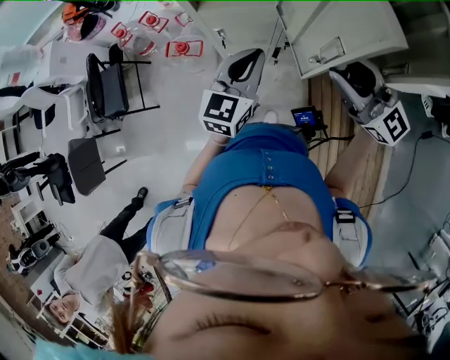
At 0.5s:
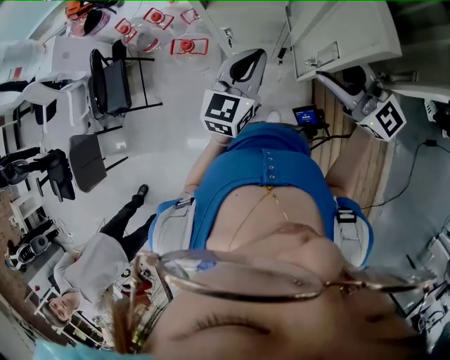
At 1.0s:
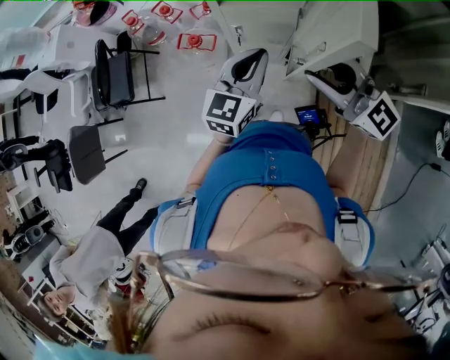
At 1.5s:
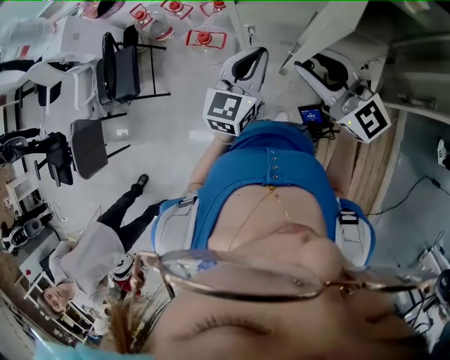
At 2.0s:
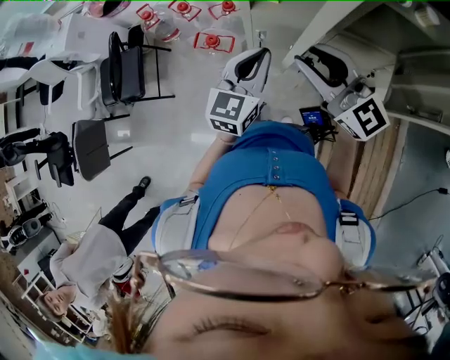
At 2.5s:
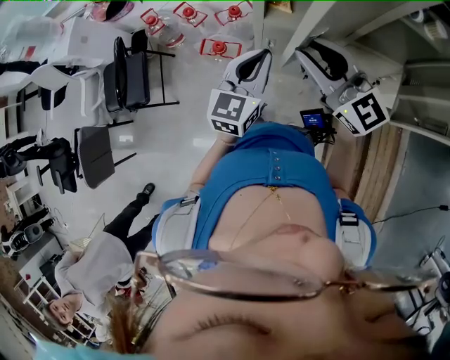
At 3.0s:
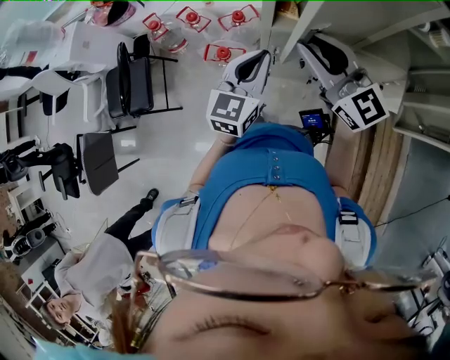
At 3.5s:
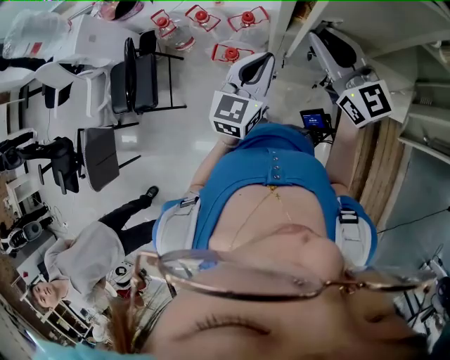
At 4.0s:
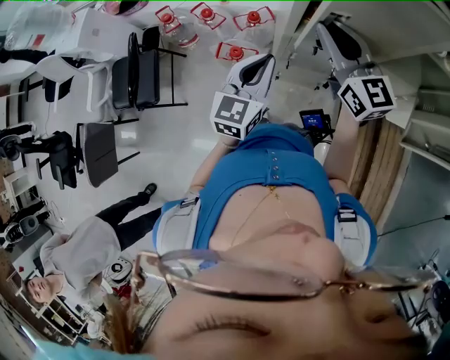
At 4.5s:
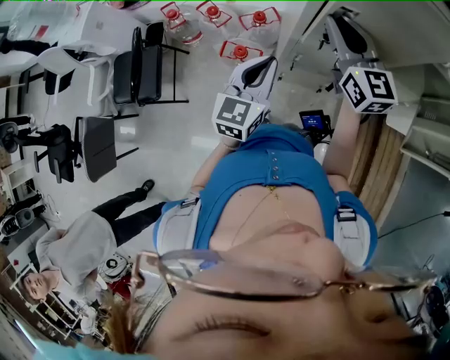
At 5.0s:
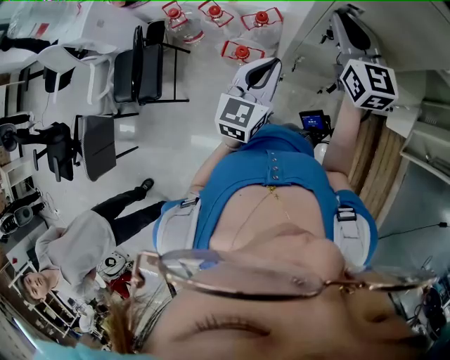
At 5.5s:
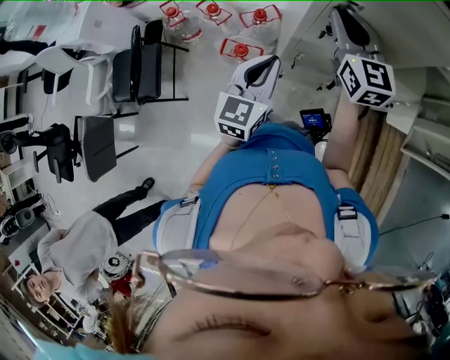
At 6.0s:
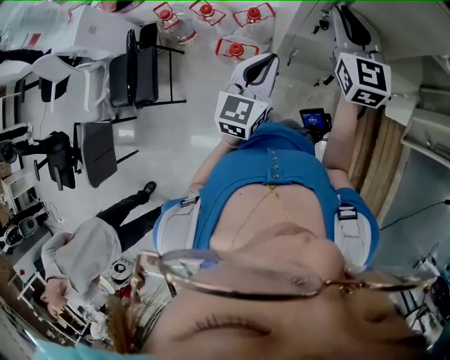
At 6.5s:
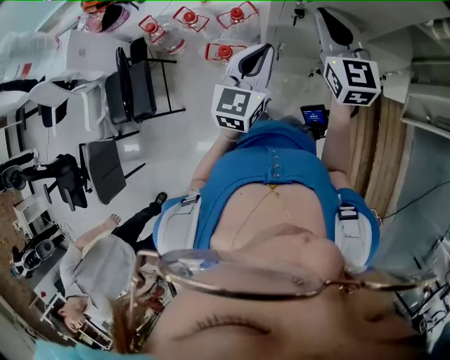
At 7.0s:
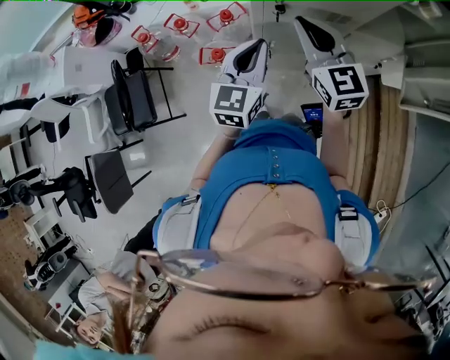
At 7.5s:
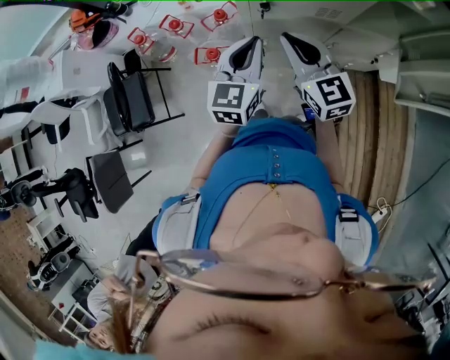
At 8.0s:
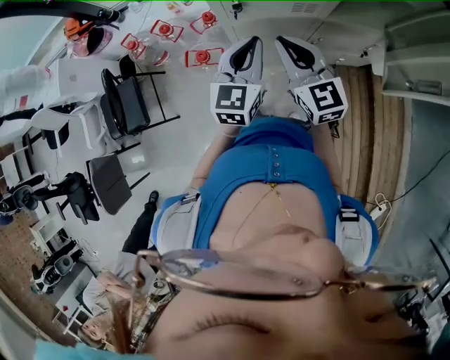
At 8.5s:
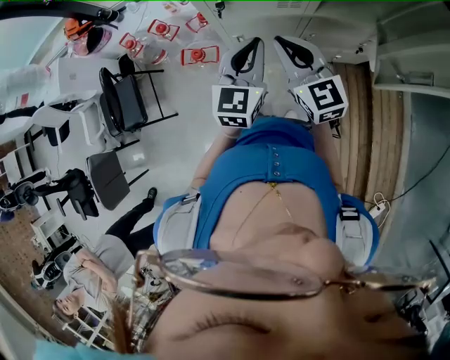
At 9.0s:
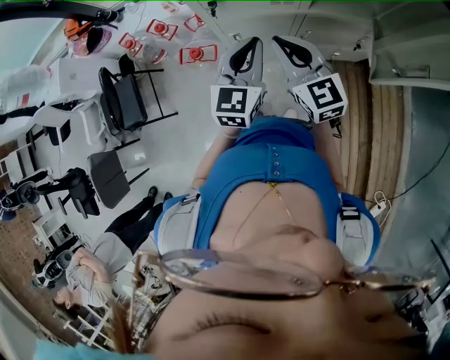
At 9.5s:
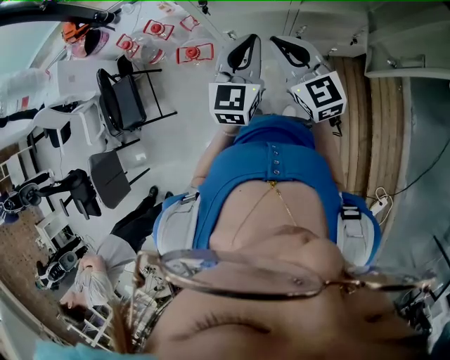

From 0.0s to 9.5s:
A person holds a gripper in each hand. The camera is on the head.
From 0.0s to 2.0s: The left gripper goes about 15 cm to the left and forward. The right gripper goes roughly 20 cm to the left and forward.
From 2.0s to 4.0s: The left gripper is displaced to the left and forward by some 15 cm, while the right gripper goes about 15 cm forward, and swivels about 20 degrees.
From 4.0s to 5.5s: The right gripper moves forward, about 5 cm.
From 5.5s to 7.5s: The right gripper is displaced backward and downward by some 15 cm, while the left gripper moves to the right, approximately 10 cm.
From 7.5s to 9.5s: The right gripper shifts some 15 cm to the right and backward. Meanwhile the left gripper travels to the right by roughly 15 cm.

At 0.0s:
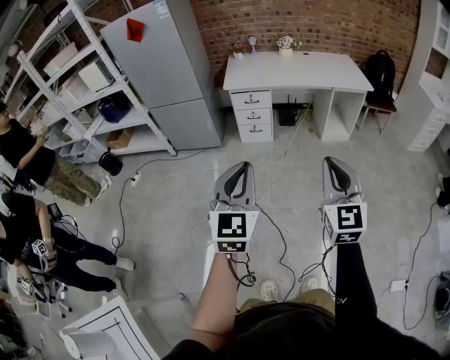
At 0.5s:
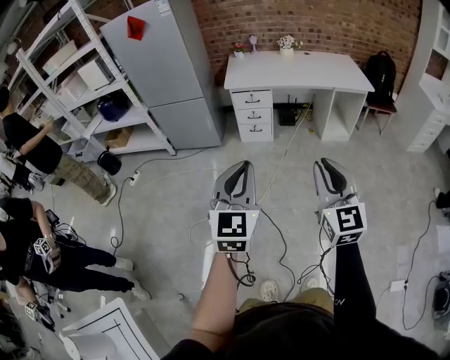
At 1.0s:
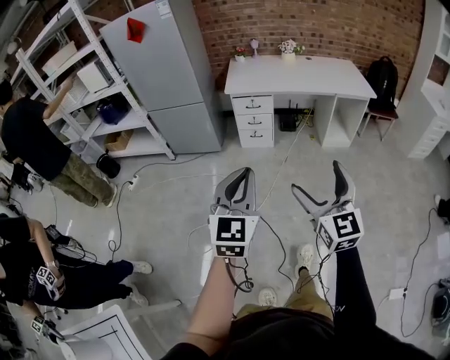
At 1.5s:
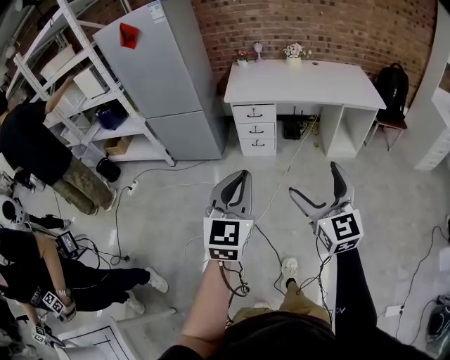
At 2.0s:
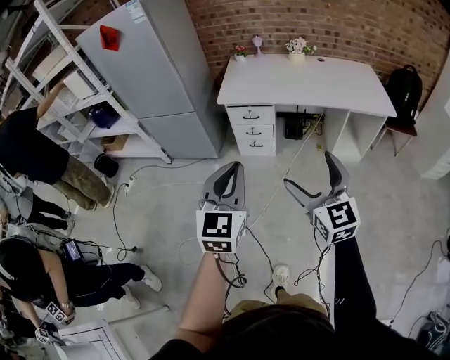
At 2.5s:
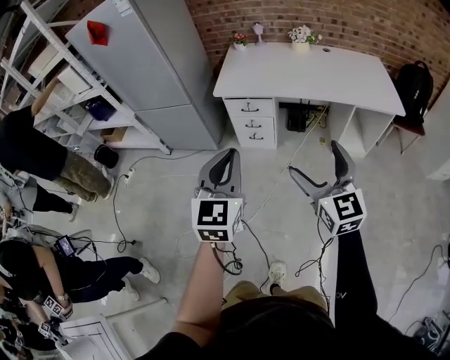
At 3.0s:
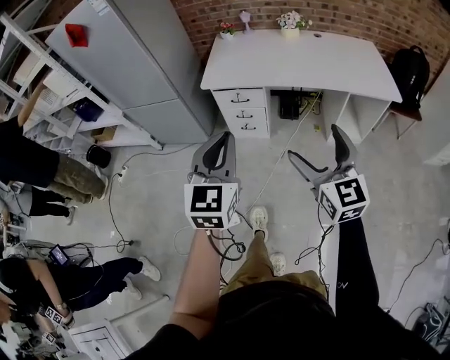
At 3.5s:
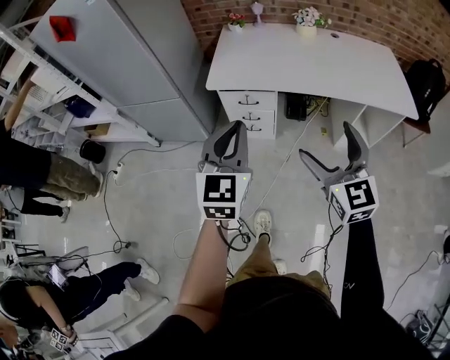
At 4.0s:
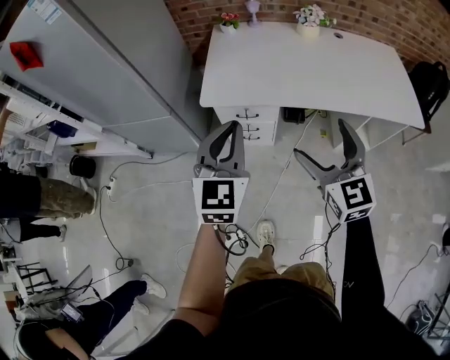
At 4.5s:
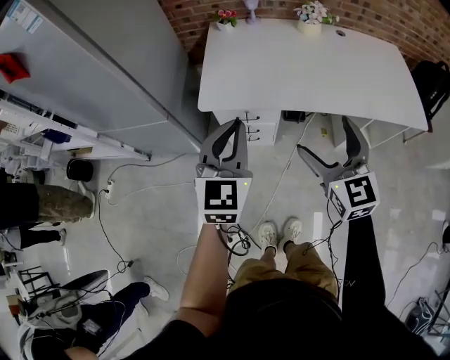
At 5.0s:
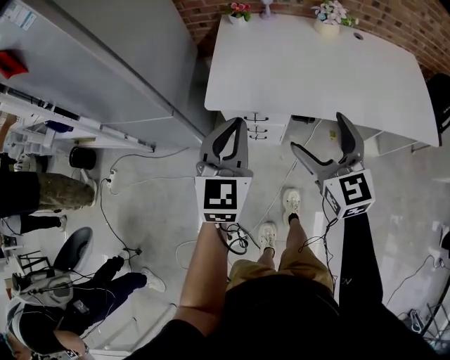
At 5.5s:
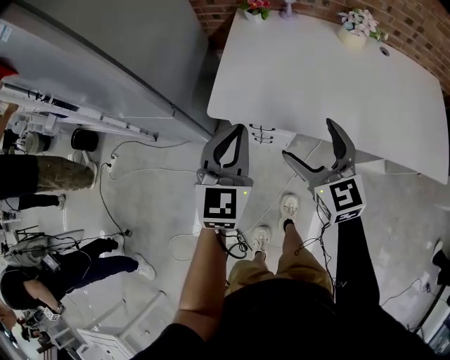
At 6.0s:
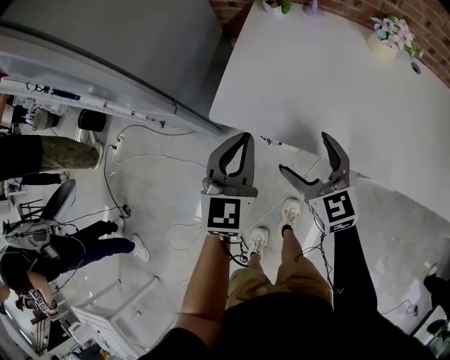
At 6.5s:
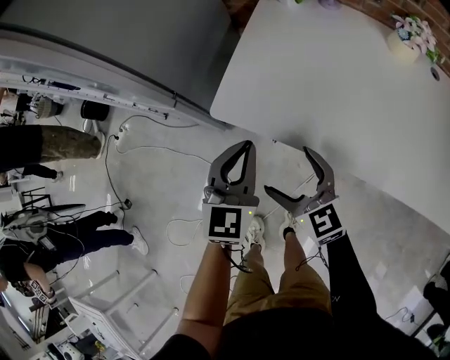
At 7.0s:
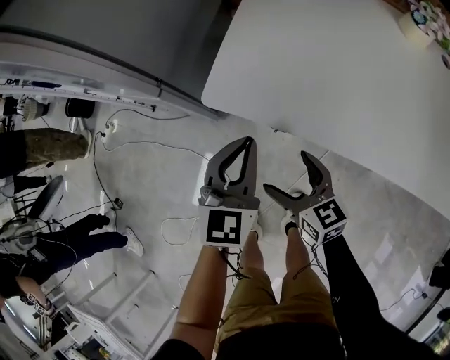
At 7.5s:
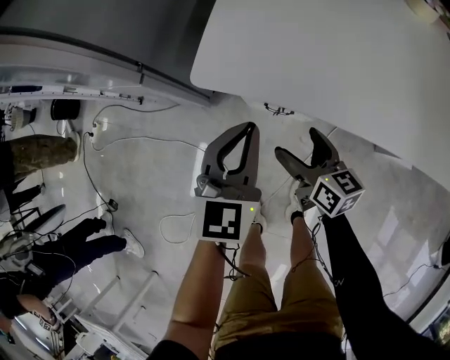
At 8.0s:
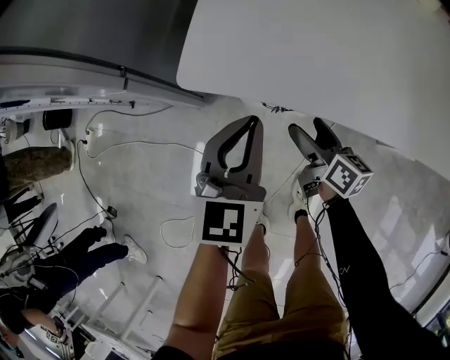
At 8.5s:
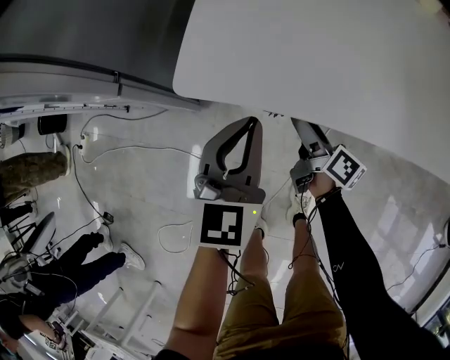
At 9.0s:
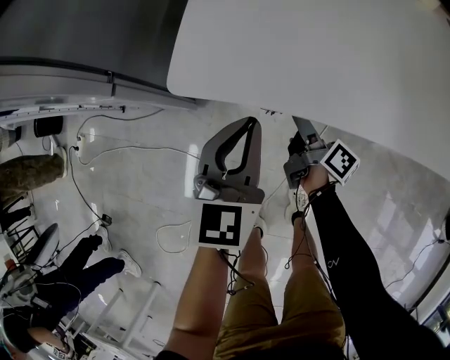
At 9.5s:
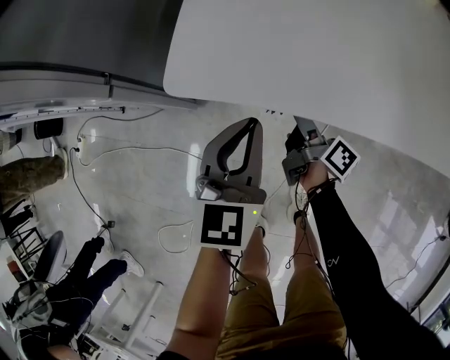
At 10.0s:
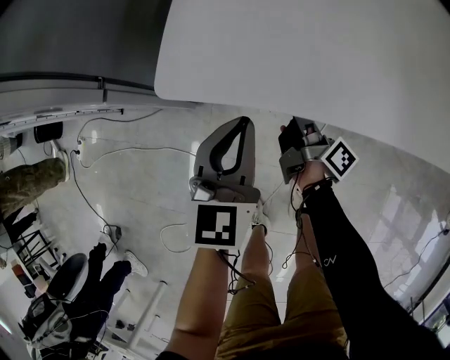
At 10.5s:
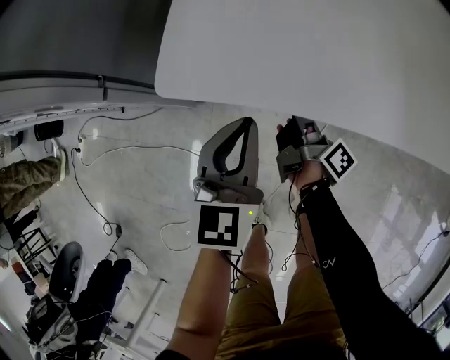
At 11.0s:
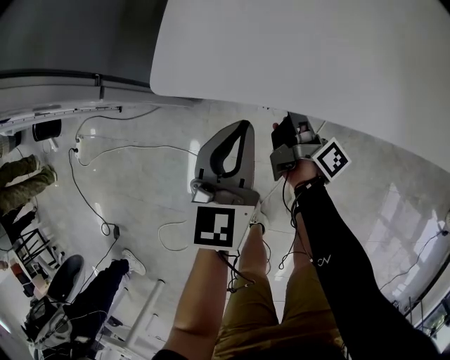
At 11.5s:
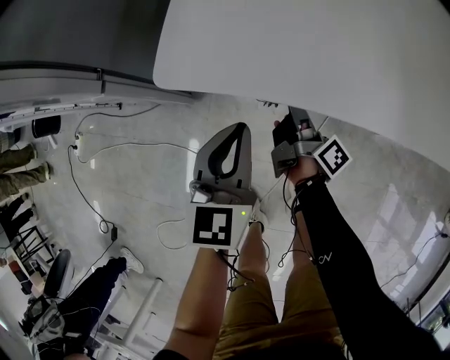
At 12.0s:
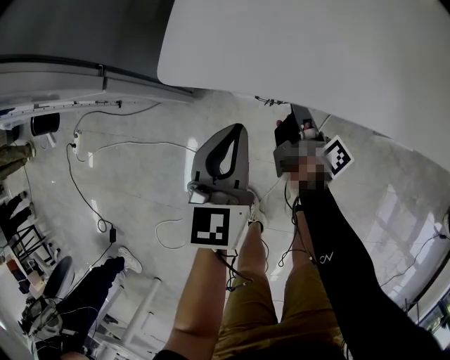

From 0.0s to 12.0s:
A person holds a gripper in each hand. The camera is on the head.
From 0.0s to 2.0s: The two grippers go roughly 30 cm forward. The right gripper changes its angle by approximately 20 degrees, and opens its fingers.
From 2.0s to 4.0s: The grippers both shift forward by approximately 40 cm.
From 4.0s to 6.0s: Both grippers move forward and downward, some 25 cm. The right gripper changes its angle by roughly 30 degrees.
From 6.0s to 8.0s: Both grippers move downward, about 25 cm. The right gripper rolls clockwise, seen from behind, by roughly 50 degrees.
From 8.0s to 10.0s: The right gripper changes its angle by some 40 degrees, and closes up.
From 10.0s to 12.0s: The grippers make only small movements.

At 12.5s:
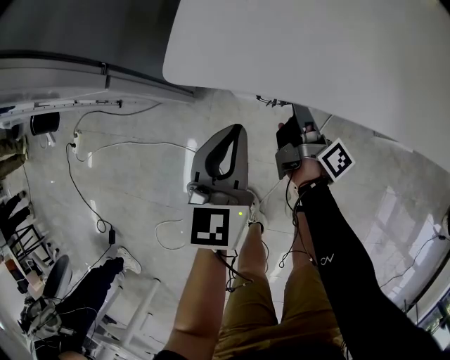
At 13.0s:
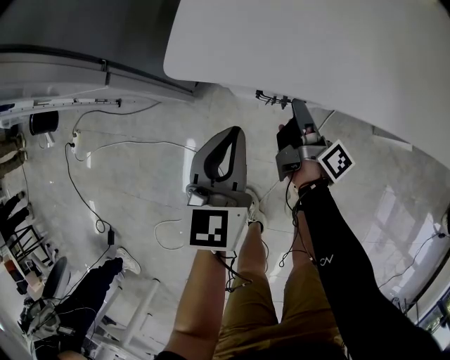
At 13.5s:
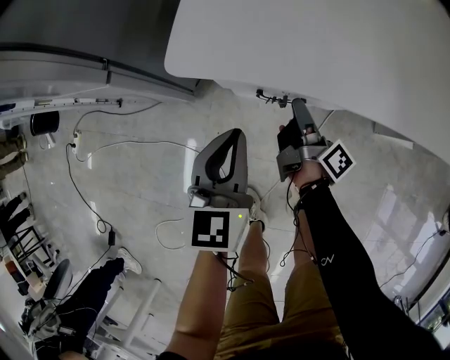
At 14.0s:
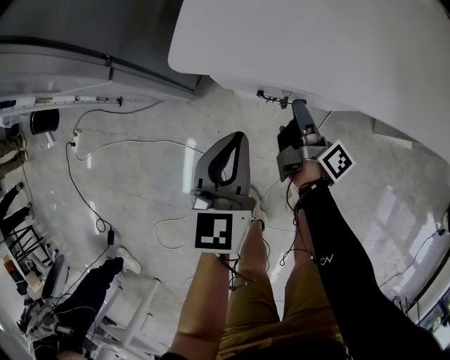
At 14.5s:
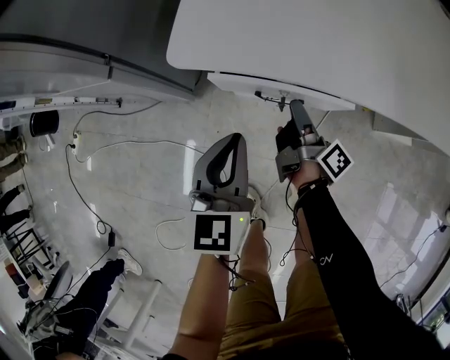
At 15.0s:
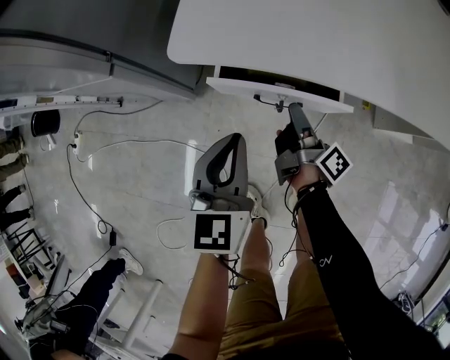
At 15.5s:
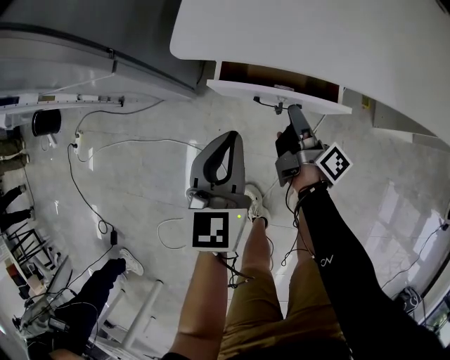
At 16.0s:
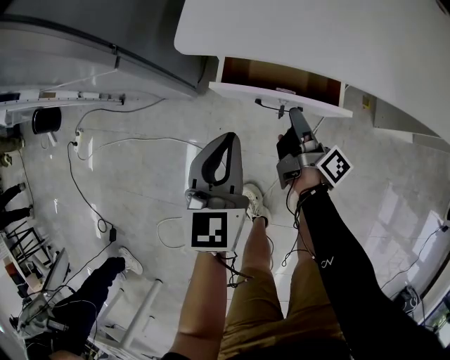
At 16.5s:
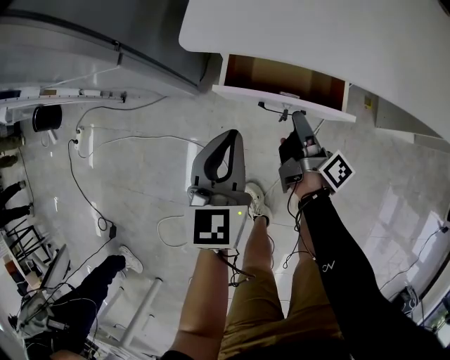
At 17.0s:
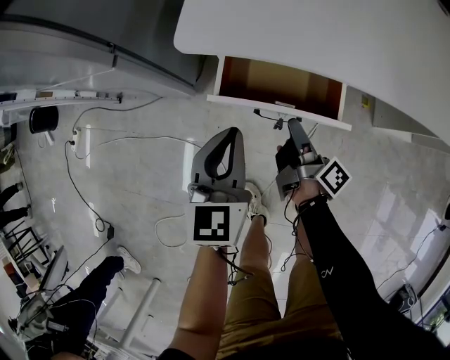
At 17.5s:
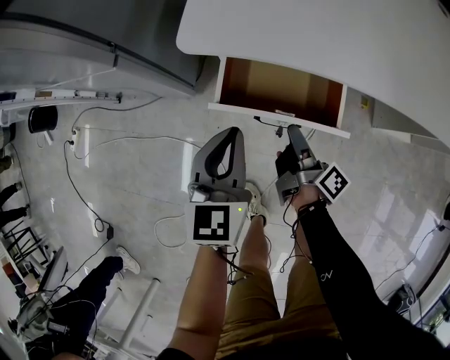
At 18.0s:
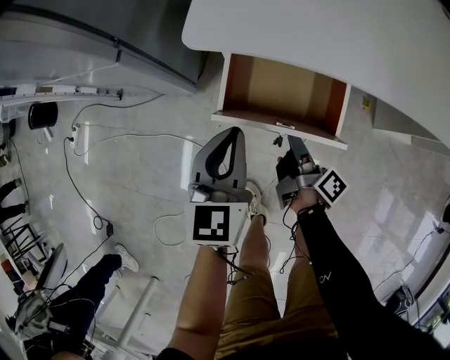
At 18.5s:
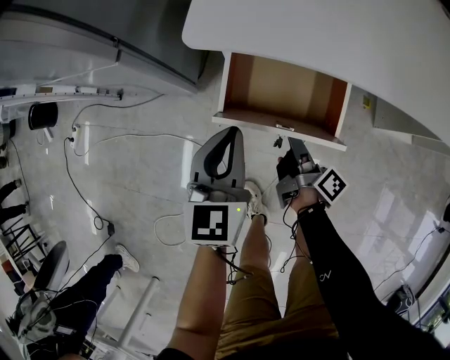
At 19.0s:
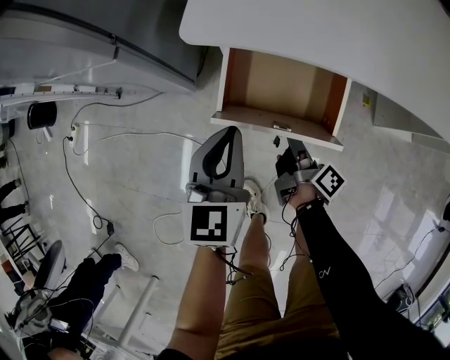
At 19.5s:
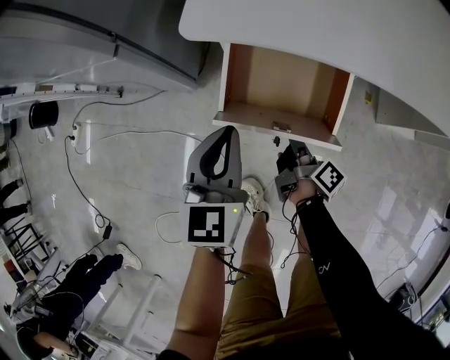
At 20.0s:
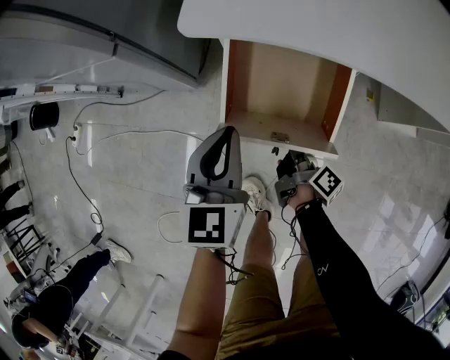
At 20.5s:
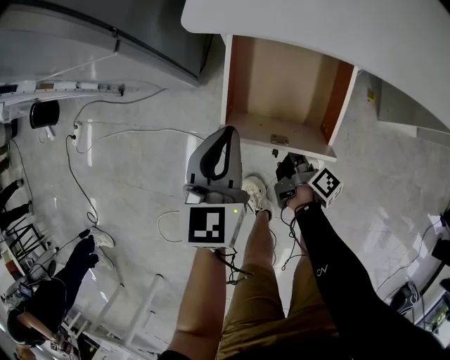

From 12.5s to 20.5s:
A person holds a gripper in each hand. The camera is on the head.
From 12.5s to 14.5s: The left gripper shifts by roughly 5 cm.
From 14.5s to 16.5s: The grippers make only small movements.
From 16.5s to 18.5s: The right gripper shifts roughly 5 cm backward.
From 18.5s to 20.5s: The right gripper is displaced downward by some 5 cm.
